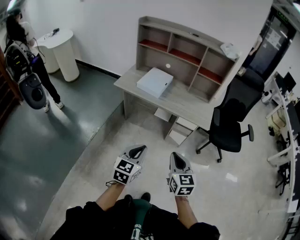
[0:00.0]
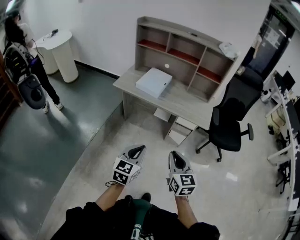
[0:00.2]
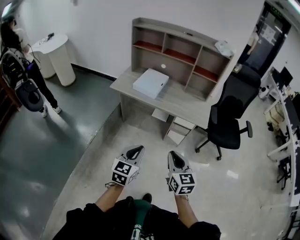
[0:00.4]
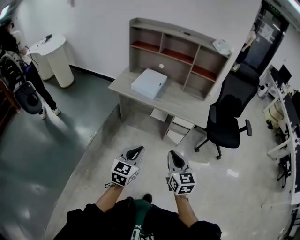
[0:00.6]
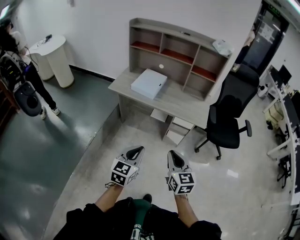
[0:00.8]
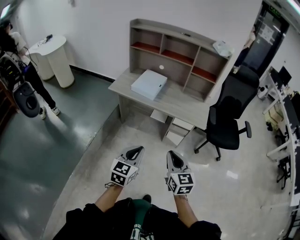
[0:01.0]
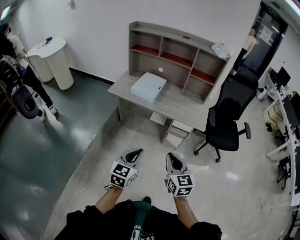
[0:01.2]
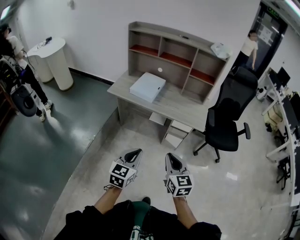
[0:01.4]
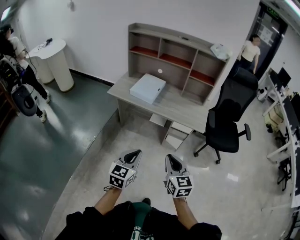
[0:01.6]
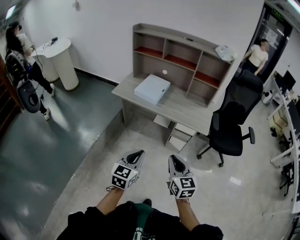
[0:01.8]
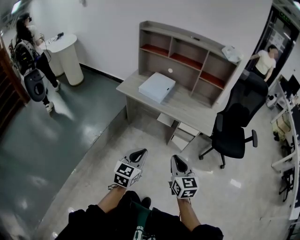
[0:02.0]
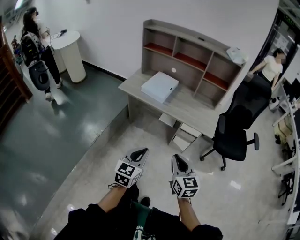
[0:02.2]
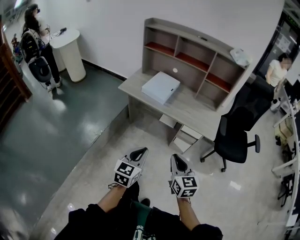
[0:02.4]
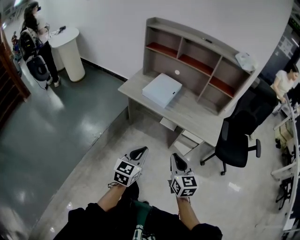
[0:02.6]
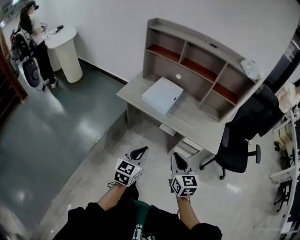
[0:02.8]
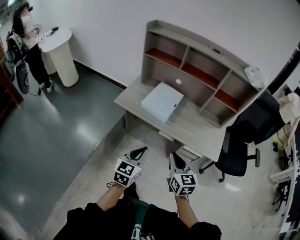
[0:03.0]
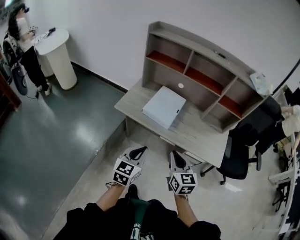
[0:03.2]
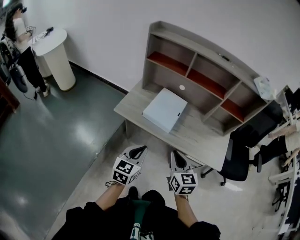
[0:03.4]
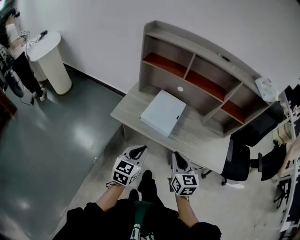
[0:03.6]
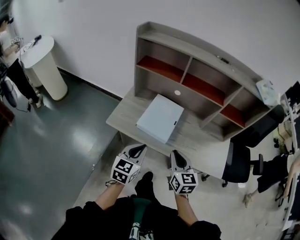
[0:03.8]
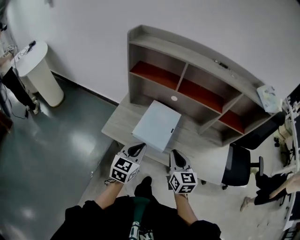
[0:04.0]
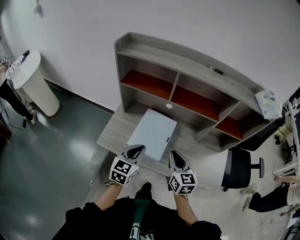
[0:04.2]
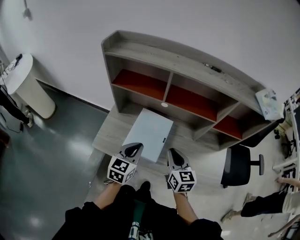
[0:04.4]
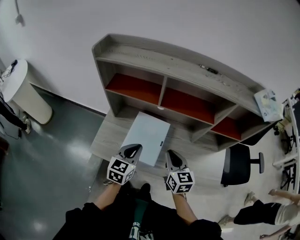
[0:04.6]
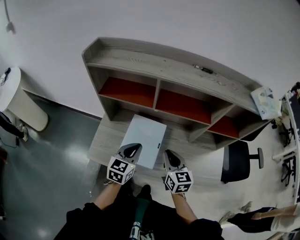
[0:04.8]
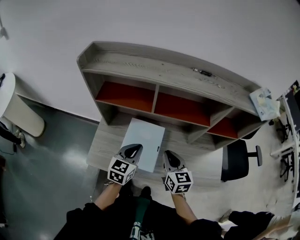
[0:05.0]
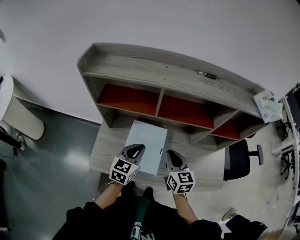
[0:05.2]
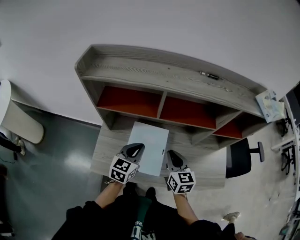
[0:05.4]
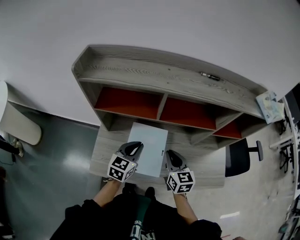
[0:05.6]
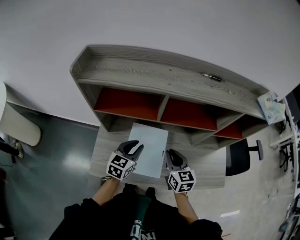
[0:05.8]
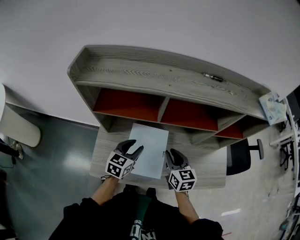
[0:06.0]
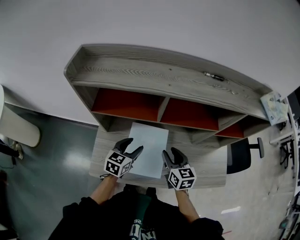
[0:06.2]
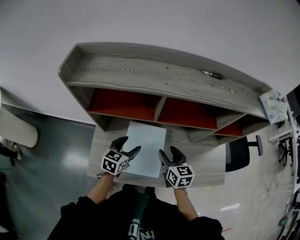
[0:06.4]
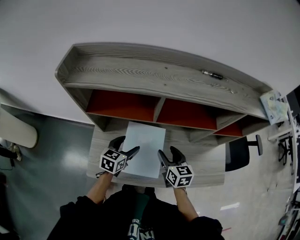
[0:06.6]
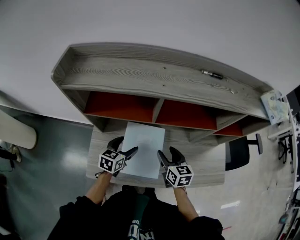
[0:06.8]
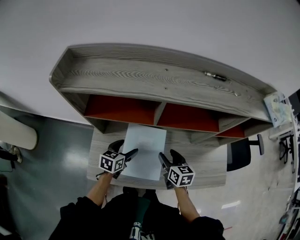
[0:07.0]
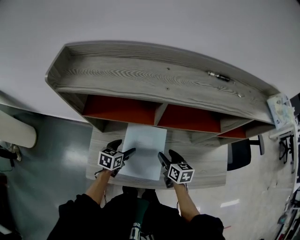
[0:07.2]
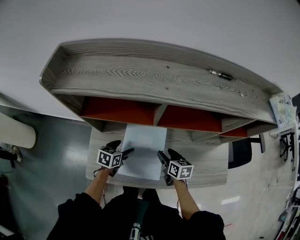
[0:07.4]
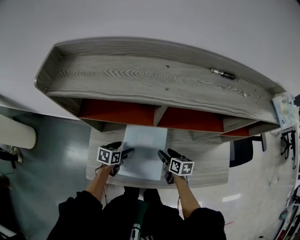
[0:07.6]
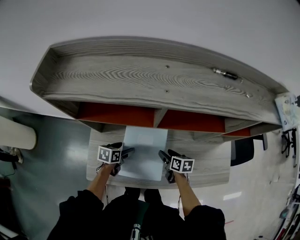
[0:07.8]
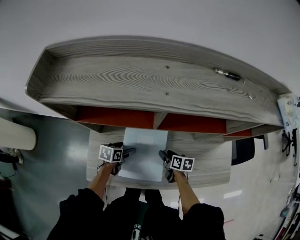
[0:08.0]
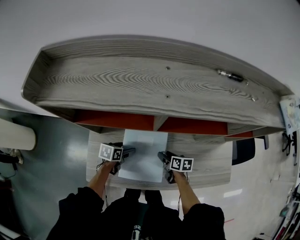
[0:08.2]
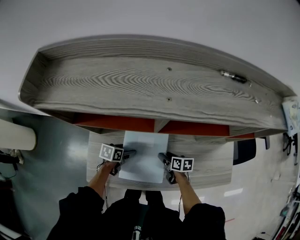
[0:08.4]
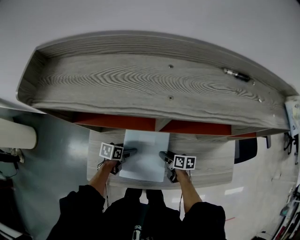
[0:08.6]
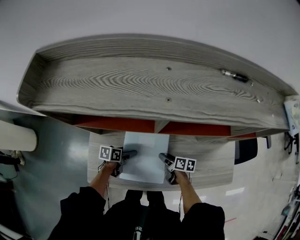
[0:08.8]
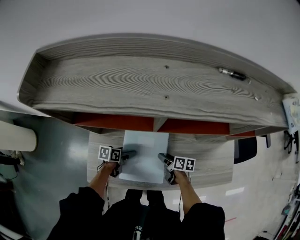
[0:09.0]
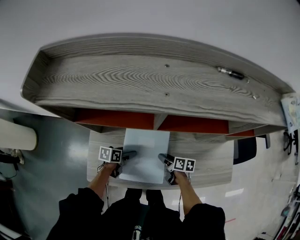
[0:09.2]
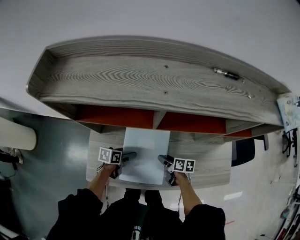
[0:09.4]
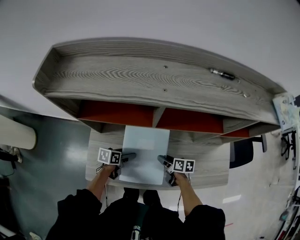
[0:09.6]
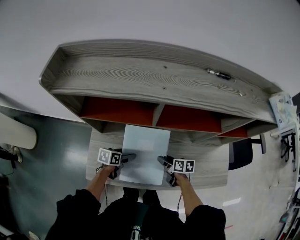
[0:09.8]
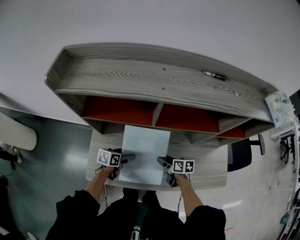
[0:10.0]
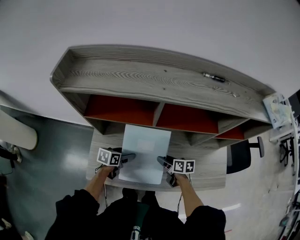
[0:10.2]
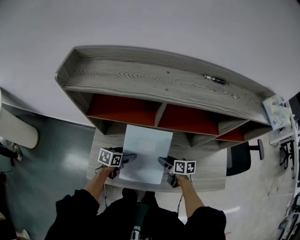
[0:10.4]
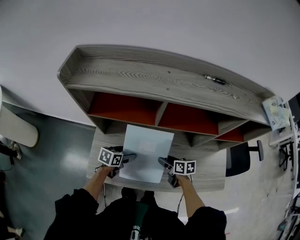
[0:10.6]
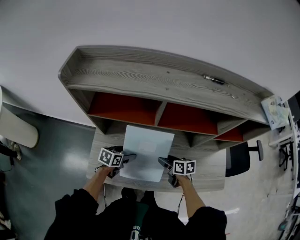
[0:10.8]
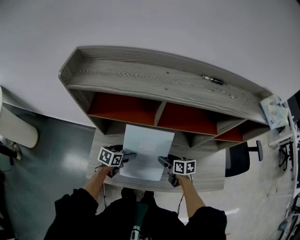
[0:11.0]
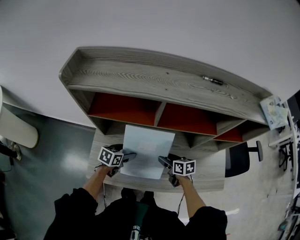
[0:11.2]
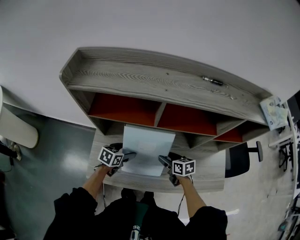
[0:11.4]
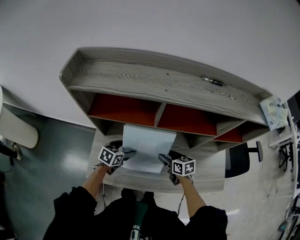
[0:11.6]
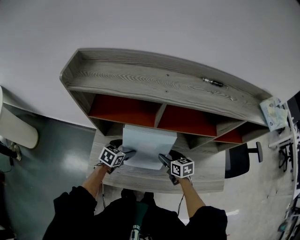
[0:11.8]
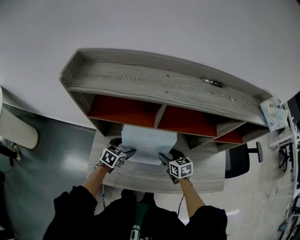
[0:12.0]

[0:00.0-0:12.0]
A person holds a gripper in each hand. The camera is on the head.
0.0 to 1.6 s: The grippers make only small movements.
1.6 to 3.0 s: The grippers both shift forward by some 25 cm.
3.0 to 4.4 s: Both grippers move forward, approximately 35 cm.
4.4 to 6.0 s: Both grippers move forward, approximately 15 cm. The left gripper opens up.
6.0 to 7.6 s: The two grippers go approximately 15 cm downward. The left gripper changes its angle by approximately 30 degrees, and opens its fingers, while the right gripper swivels some 30 degrees, and opens up.
7.6 to 9.0 s: Both grippers move downward, roughly 5 cm. The right gripper turns by roughly 20 degrees.
9.0 to 10.4 s: The two grippers go some 10 cm upward.
10.4 to 12.0 s: The right gripper is displaced upward by approximately 5 cm, and changes its angle by approximately 30 degrees, while the left gripper shifts by roughly 5 cm, and changes its angle by about 30 degrees.

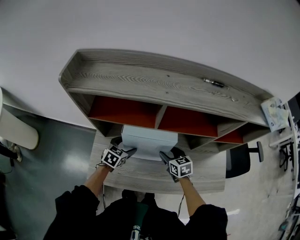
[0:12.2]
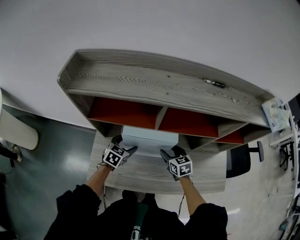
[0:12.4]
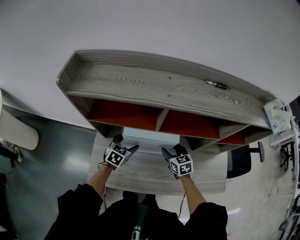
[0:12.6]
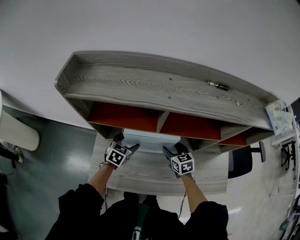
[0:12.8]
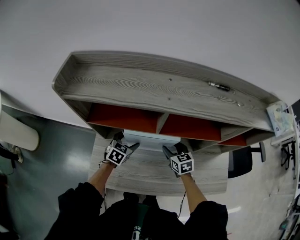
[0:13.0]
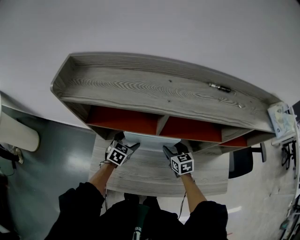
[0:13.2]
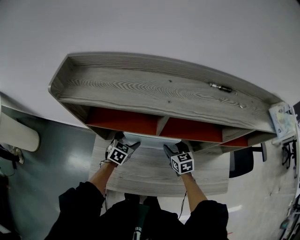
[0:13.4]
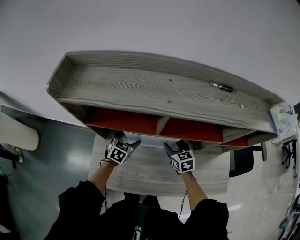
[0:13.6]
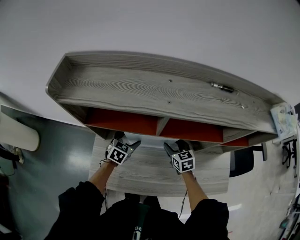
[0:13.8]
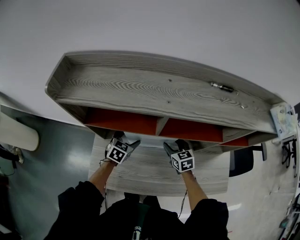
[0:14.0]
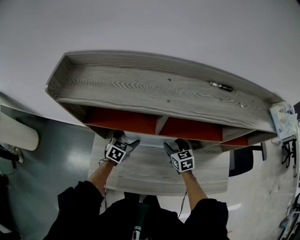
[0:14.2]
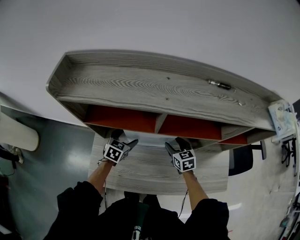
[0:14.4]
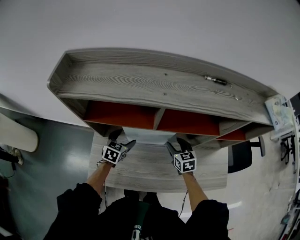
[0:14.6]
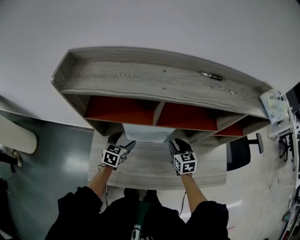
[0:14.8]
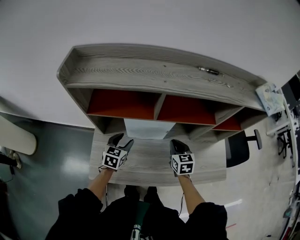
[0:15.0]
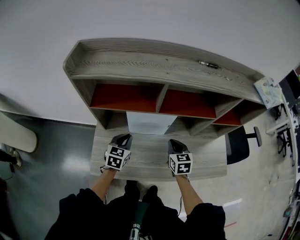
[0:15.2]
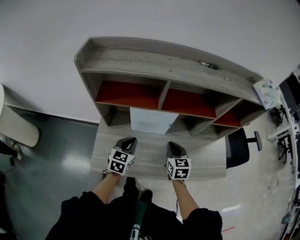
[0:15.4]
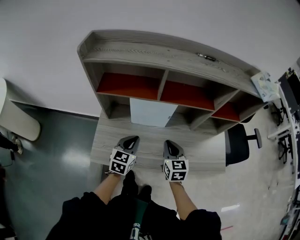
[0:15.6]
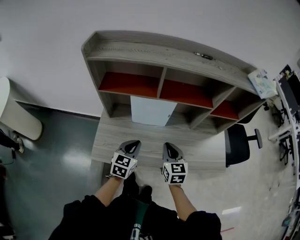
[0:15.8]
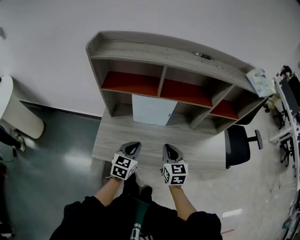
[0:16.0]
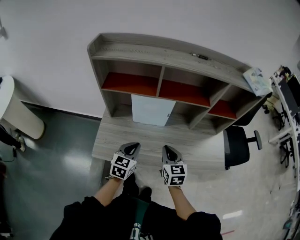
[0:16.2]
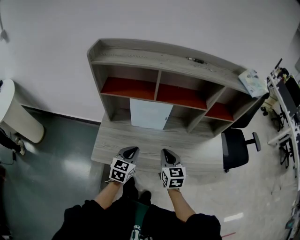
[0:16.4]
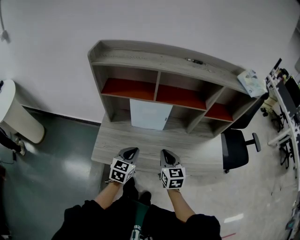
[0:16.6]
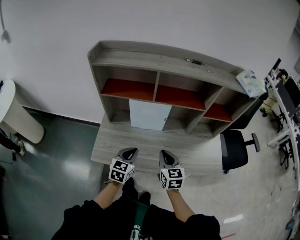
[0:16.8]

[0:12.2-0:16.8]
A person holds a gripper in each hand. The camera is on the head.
12.2 to 13.8 s: Both grippers travel together forward, some 5 cm.
13.8 to 15.2 s: The grippers both shift backward and upward by roughly 10 cm. The left gripper closes. The right gripper closes.
15.2 to 16.8 s: The left gripper is displaced backward and to the right by some 20 cm. The right gripper goes about 15 cm backward.

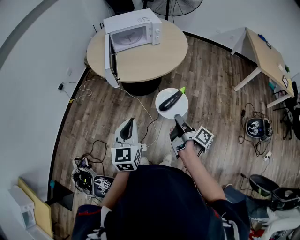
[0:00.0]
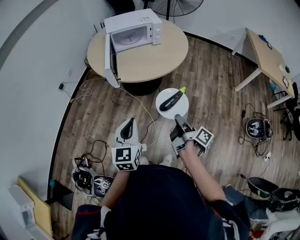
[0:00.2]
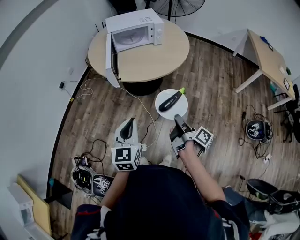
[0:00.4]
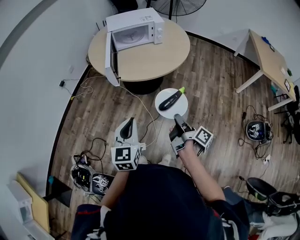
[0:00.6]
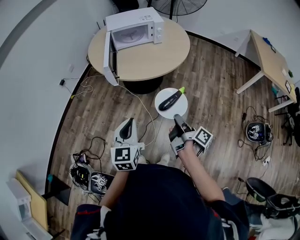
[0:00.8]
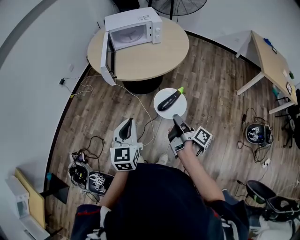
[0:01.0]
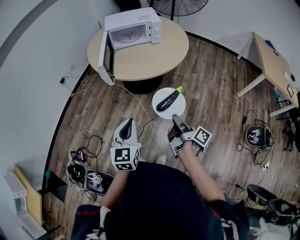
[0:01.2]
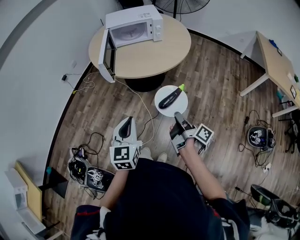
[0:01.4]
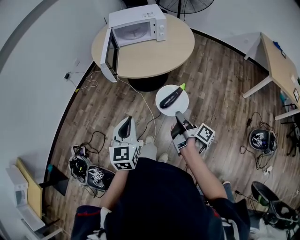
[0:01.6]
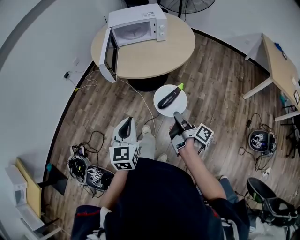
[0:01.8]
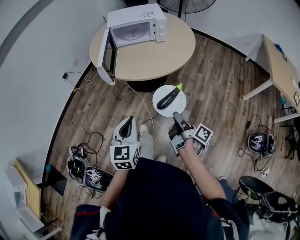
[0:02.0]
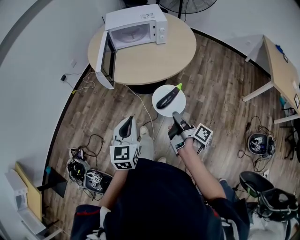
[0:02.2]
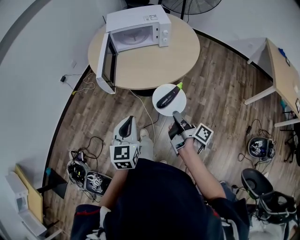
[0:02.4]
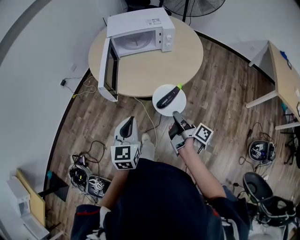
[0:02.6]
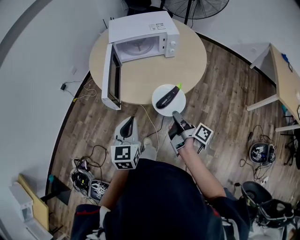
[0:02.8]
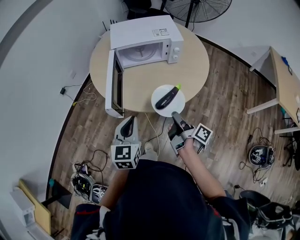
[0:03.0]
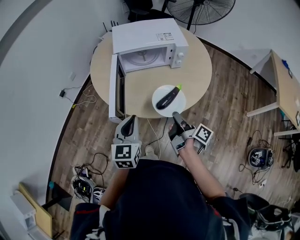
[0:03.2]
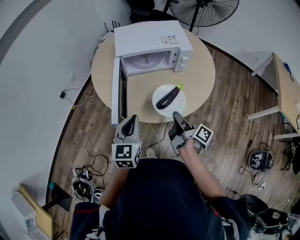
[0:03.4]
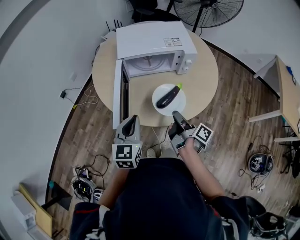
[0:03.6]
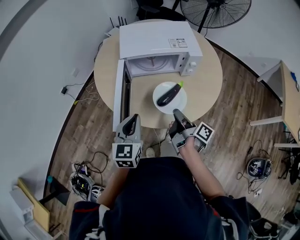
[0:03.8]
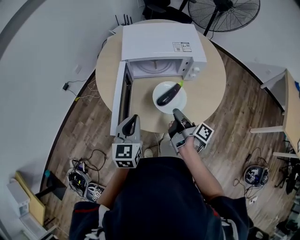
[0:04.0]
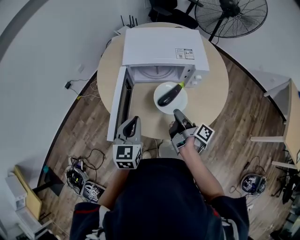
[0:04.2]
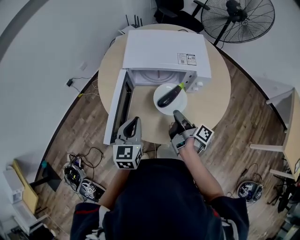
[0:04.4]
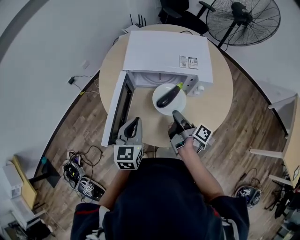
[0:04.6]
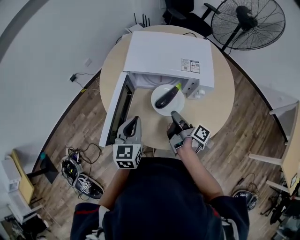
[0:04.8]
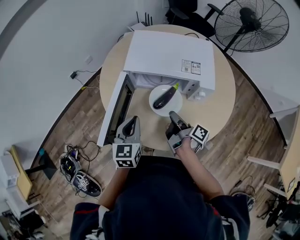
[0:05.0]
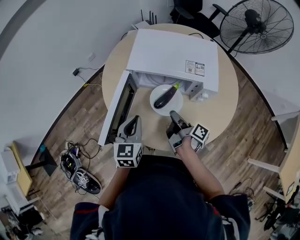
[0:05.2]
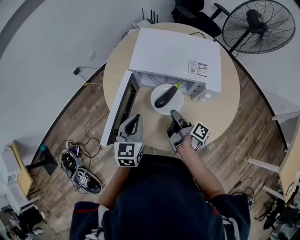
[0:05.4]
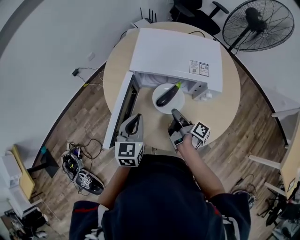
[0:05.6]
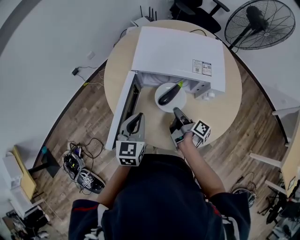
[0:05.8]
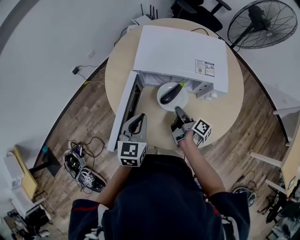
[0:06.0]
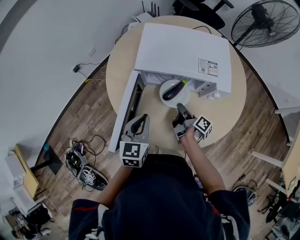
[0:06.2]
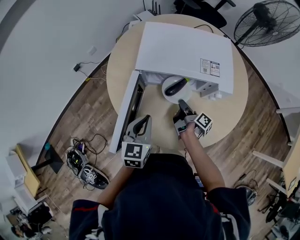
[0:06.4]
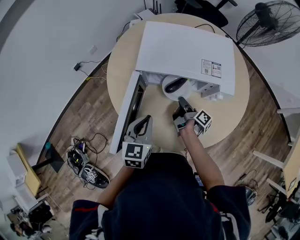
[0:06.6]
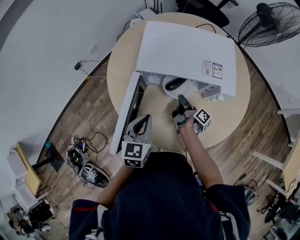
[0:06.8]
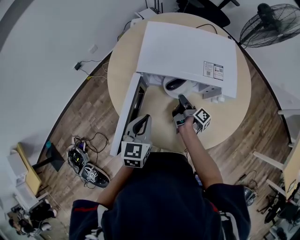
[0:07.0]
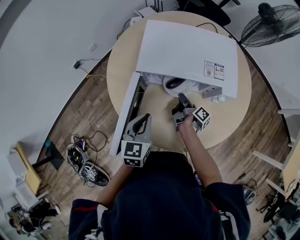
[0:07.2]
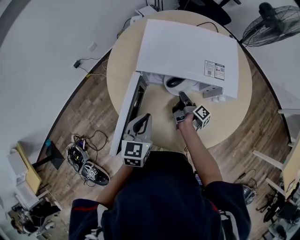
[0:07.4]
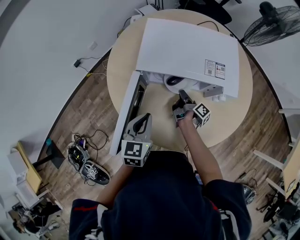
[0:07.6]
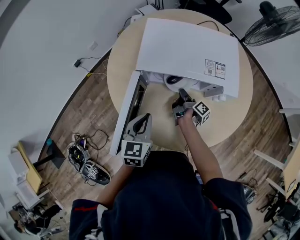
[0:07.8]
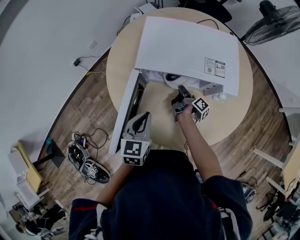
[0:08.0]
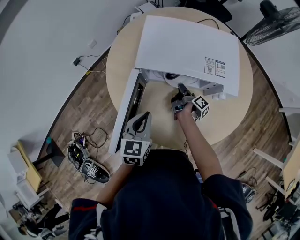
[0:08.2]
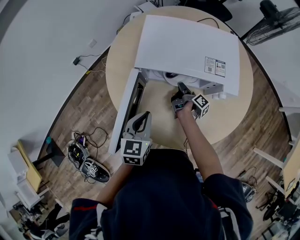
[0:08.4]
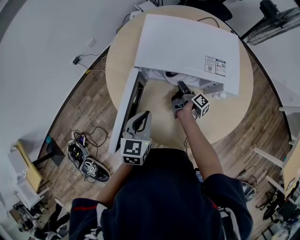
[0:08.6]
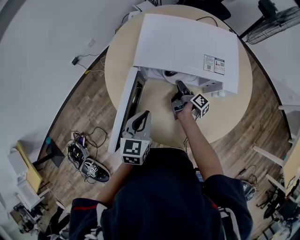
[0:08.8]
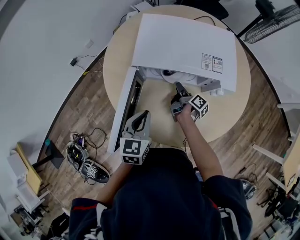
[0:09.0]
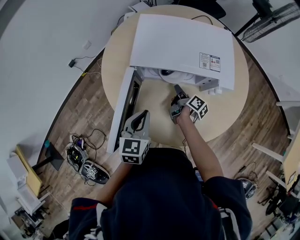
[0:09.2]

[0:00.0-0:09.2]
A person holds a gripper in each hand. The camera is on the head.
0.0 to 1.6 s: Both grippers move to the right, approximately 5 cm.
1.6 to 3.0 s: Both grippers move forward, approximately 30 cm.
3.0 to 4.6 s: The two grippers go about 25 cm forward.
4.6 to 6.2 s: The left gripper ends up some 5 cm from where it was. The right gripper shifts some 10 cm downward and forward.
6.2 to 7.6 s: The right gripper travels forward and downward by roughly 10 cm.
7.6 to 9.2 s: The grippers make only small movements.
